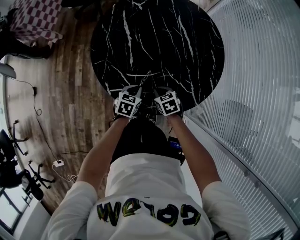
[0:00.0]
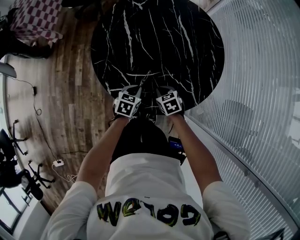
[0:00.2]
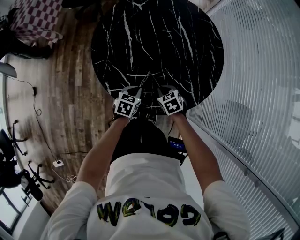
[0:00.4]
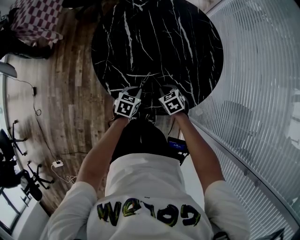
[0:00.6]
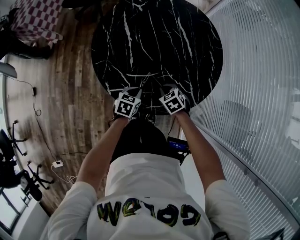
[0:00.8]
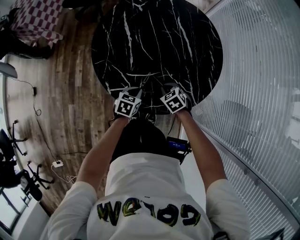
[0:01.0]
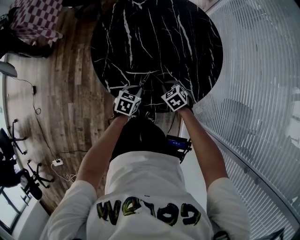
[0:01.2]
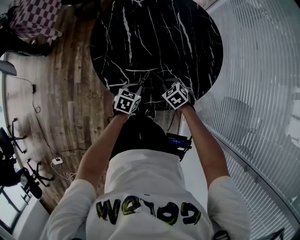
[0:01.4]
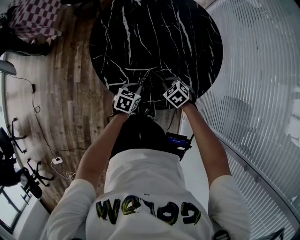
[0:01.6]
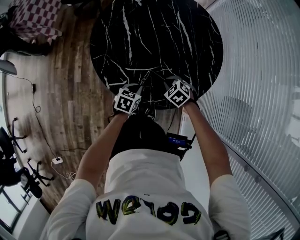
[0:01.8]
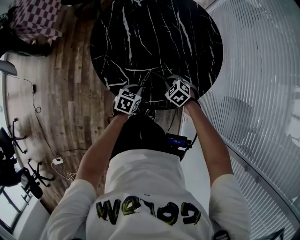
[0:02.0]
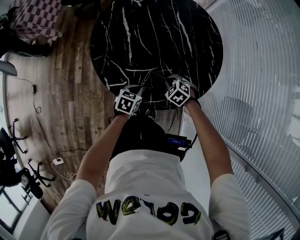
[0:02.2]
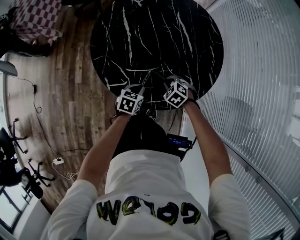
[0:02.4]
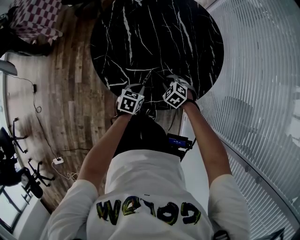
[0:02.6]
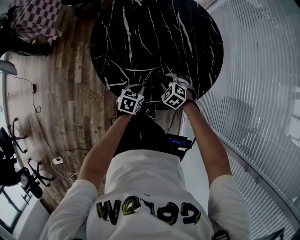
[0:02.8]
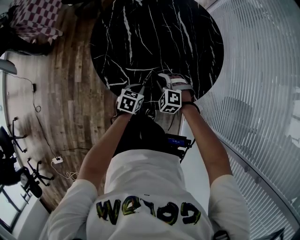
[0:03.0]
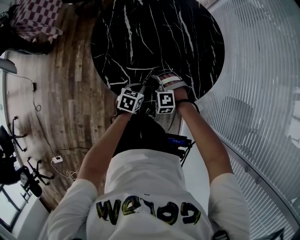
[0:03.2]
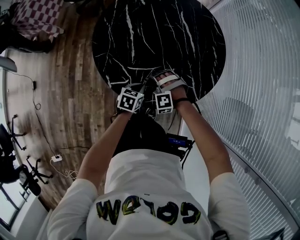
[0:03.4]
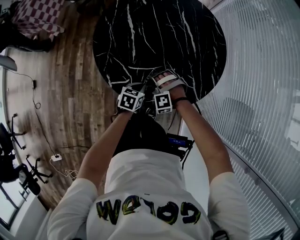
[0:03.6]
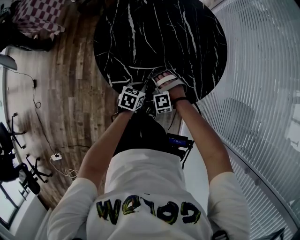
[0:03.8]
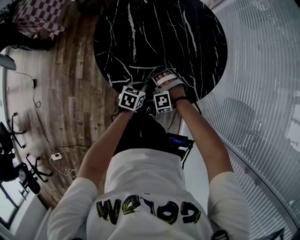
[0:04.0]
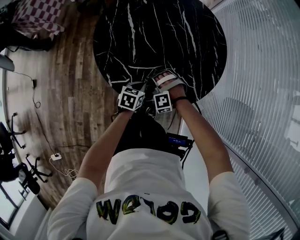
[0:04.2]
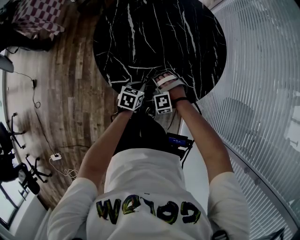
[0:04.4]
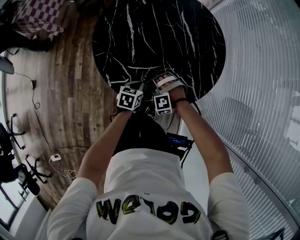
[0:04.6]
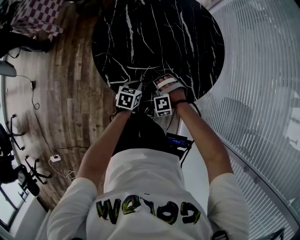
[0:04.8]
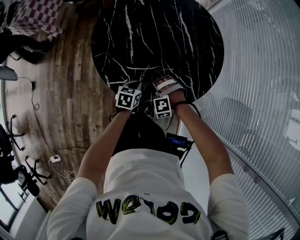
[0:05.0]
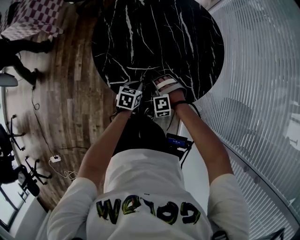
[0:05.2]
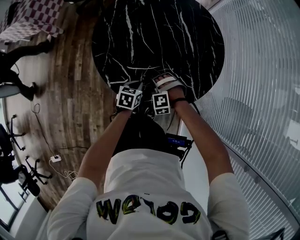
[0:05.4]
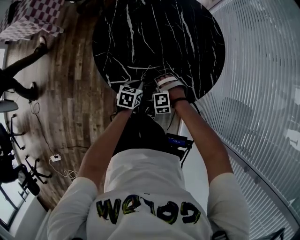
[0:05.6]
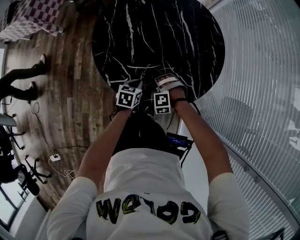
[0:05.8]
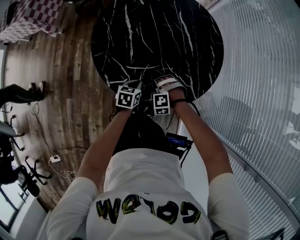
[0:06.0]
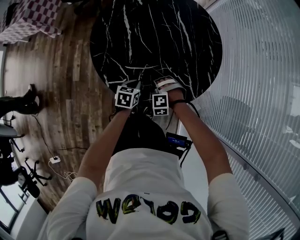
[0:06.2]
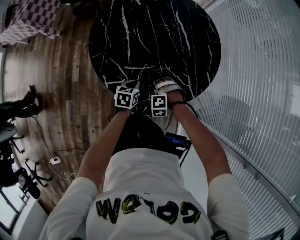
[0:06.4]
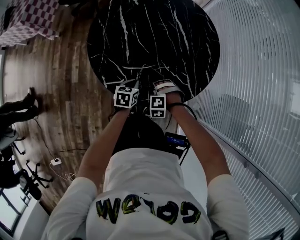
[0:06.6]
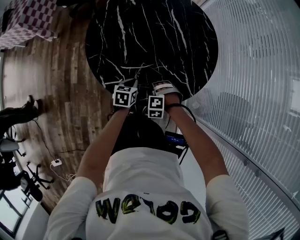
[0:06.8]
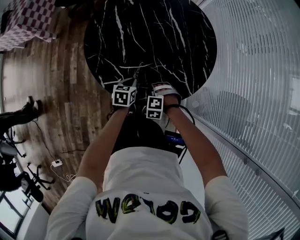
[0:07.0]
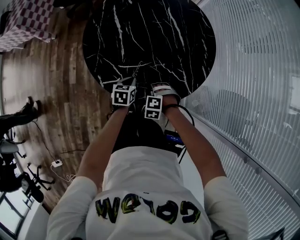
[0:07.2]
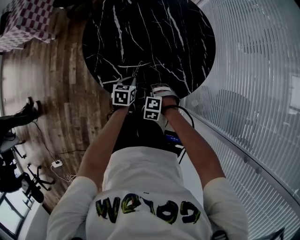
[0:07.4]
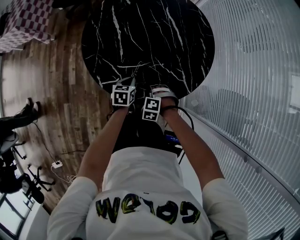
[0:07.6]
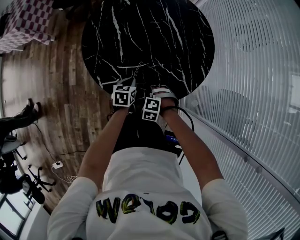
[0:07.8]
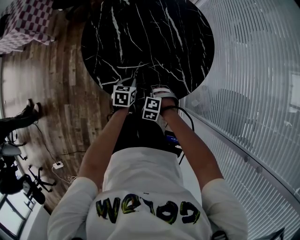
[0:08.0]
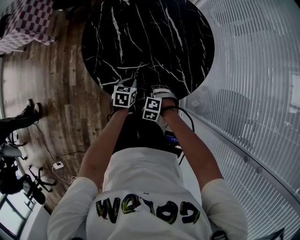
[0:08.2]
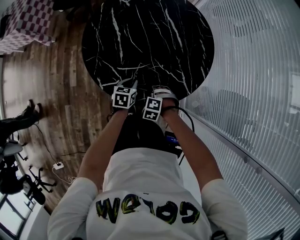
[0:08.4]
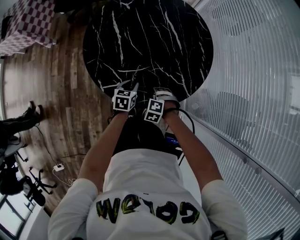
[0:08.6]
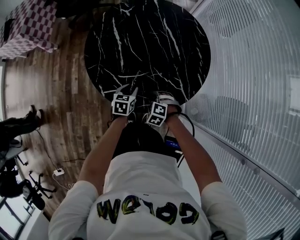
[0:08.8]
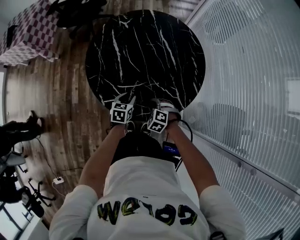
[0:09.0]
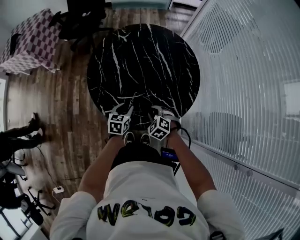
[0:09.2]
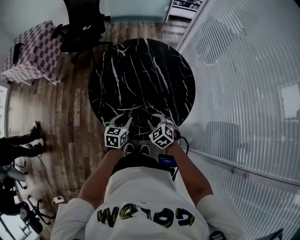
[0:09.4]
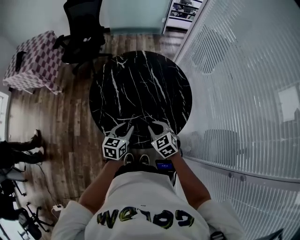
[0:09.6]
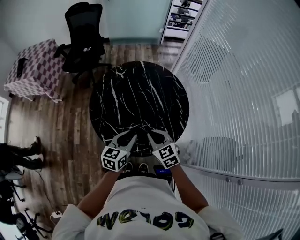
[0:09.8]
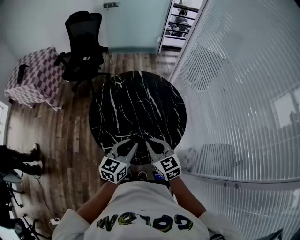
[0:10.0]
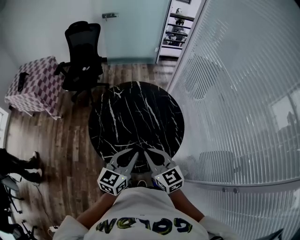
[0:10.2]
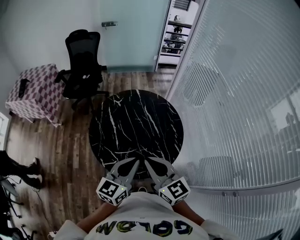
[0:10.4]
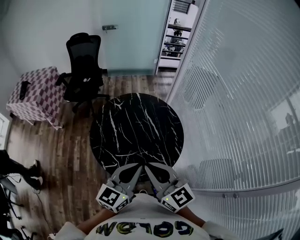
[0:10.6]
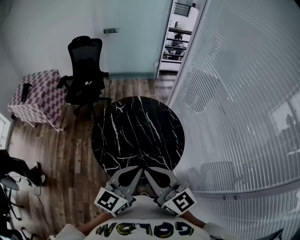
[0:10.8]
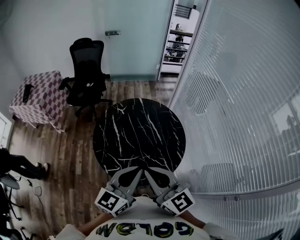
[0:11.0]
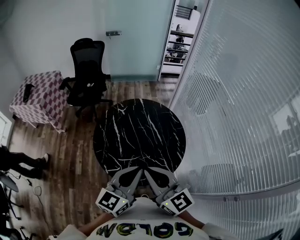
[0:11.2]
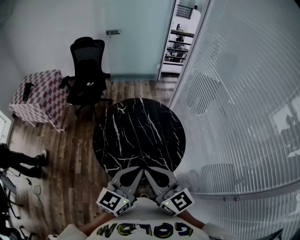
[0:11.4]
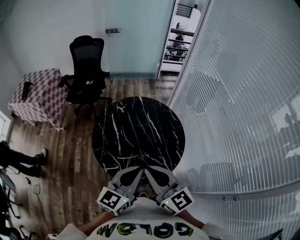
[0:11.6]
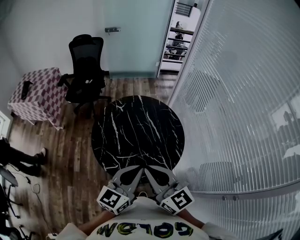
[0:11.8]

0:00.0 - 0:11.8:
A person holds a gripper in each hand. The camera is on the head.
0:00.0 - 0:01.4: The right gripper changes its angle by roughly 20 degrees.
0:01.4 - 0:03.0: The right gripper rotates about 40 degrees.
0:03.0 - 0:04.4: The right gripper shifts by approximately 5 cm, and swivels some 30 degrees.
0:04.4 - 0:06.0: The right gripper opens, then closes again.
0:06.0 - 0:07.4: The right gripper shifts by about 5 cm, and swivels roughly 20 degrees.
0:07.4 - 0:08.8: The left gripper opens its fingers; the right gripper opens its fingers.
0:08.8 - 0:10.4: Both grippers move upward, roughly 40 cm. The right gripper angles its fingers upward, by some 60 degrees, and closes; the left gripper tips its fingers upward by approximately 40 degrees, and closes its fingers.
0:10.4 - 0:11.8: The right gripper ends up some 5 cm from where it was.

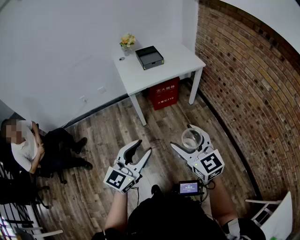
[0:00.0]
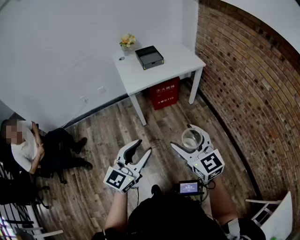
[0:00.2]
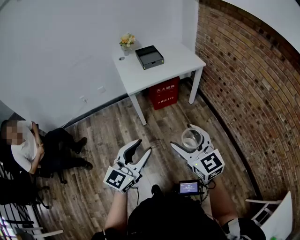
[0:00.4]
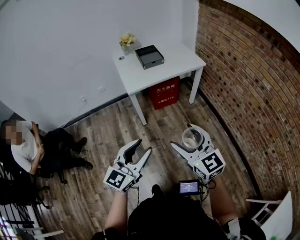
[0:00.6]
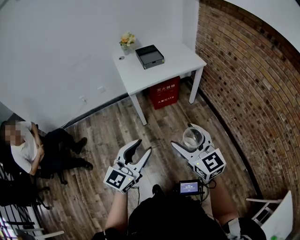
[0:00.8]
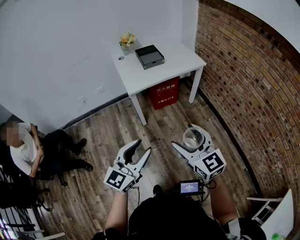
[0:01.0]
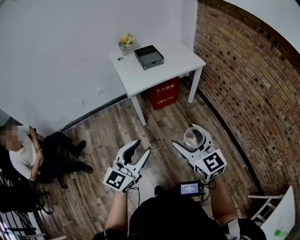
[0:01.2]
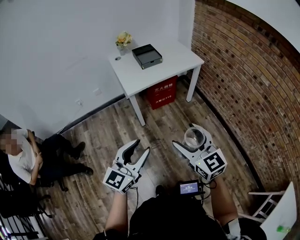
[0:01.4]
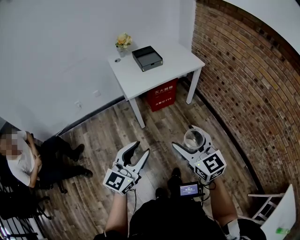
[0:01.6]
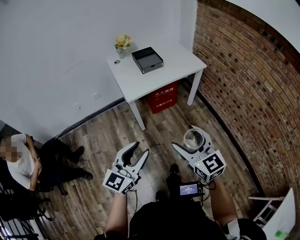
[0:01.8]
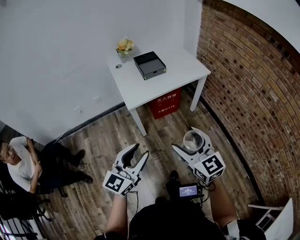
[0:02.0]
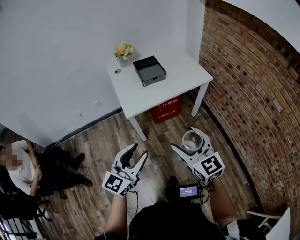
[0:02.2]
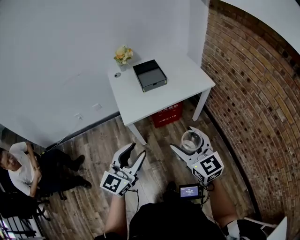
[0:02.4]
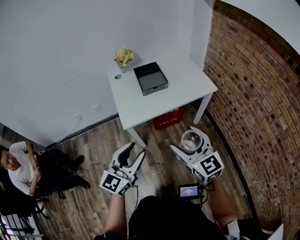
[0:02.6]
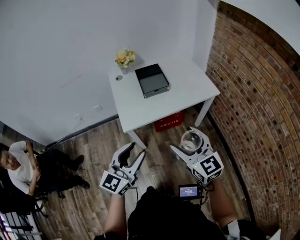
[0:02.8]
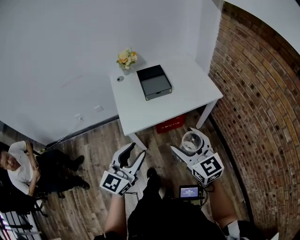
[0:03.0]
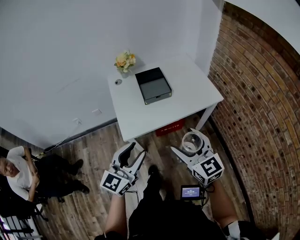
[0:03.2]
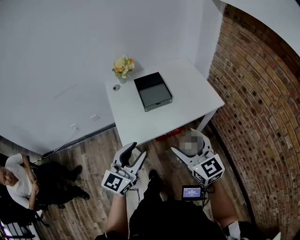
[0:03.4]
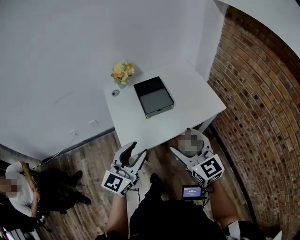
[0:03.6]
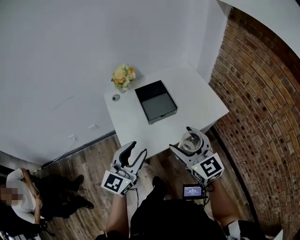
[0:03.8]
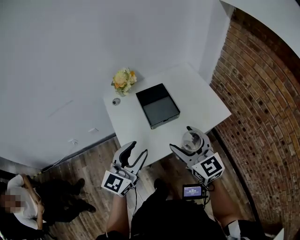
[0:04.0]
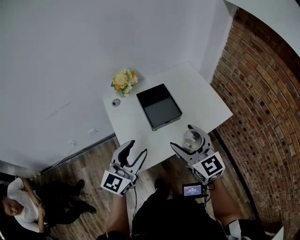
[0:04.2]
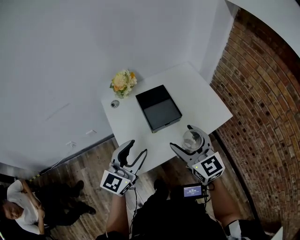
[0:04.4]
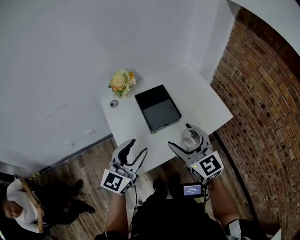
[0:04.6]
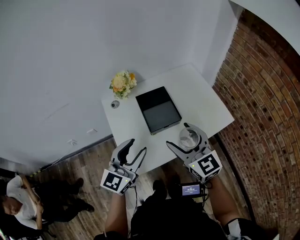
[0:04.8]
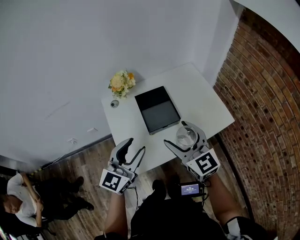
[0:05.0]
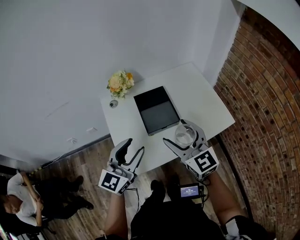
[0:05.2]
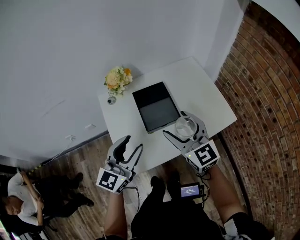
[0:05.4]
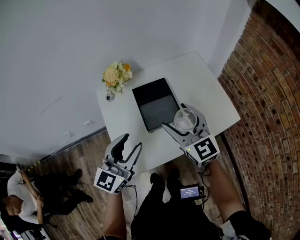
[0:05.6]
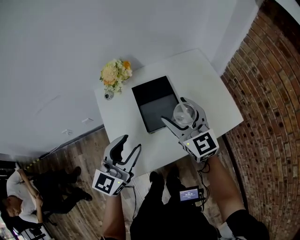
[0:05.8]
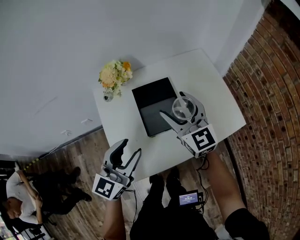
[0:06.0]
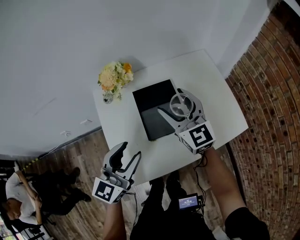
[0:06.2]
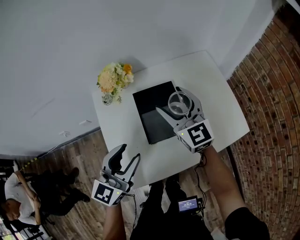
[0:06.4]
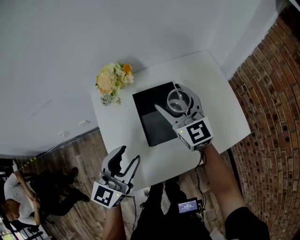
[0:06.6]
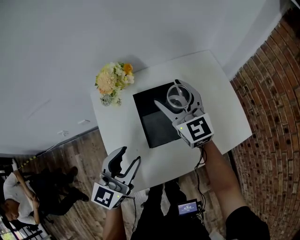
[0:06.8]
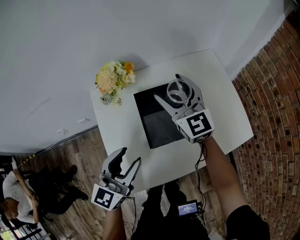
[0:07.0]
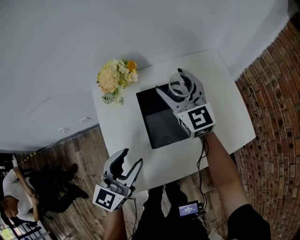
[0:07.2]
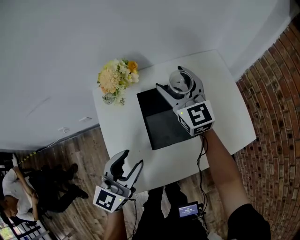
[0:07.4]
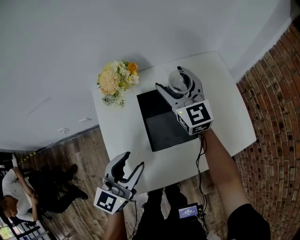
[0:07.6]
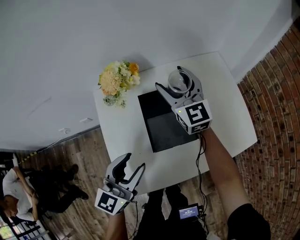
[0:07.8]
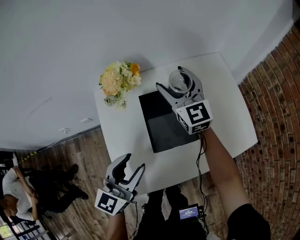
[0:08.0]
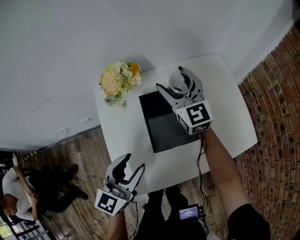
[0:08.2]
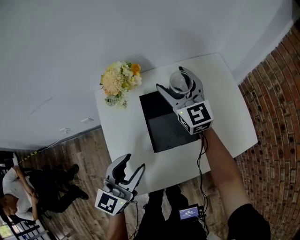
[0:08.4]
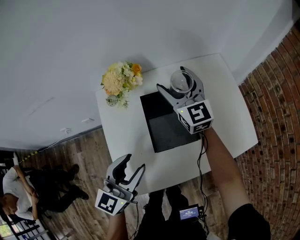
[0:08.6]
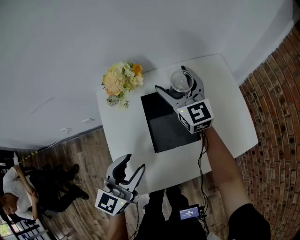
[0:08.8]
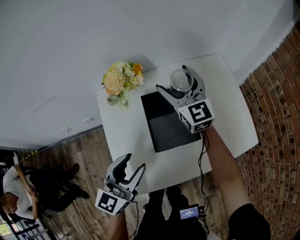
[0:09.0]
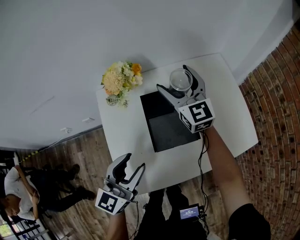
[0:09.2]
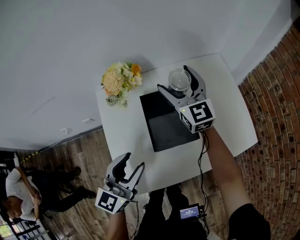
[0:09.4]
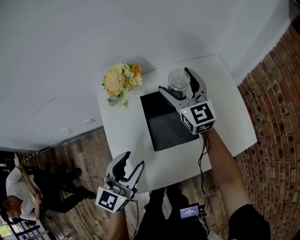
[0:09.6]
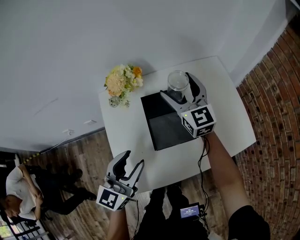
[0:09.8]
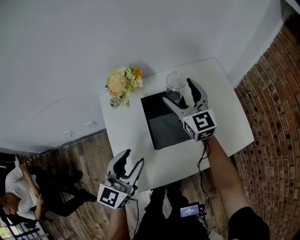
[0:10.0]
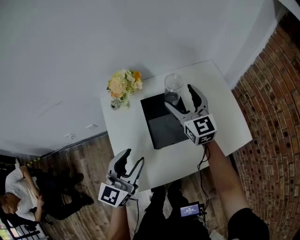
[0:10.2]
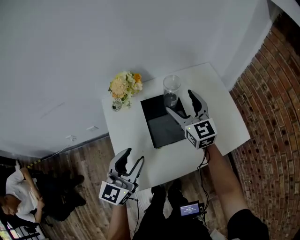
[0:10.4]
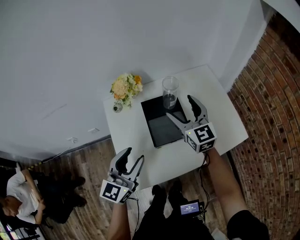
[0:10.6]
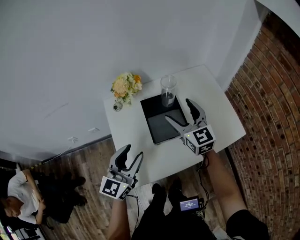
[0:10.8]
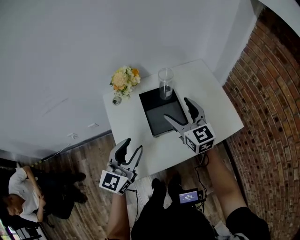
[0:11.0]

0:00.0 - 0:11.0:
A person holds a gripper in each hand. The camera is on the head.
0:00.0 - 0:01.6: The left gripper heads to the left and forward, covering about 10 cm; the right gripper heads to the left, covering approximately 5 cm.
0:01.6 - 0:03.2: Both grippers travel together forward, roughly 35 cm.
0:03.2 - 0:04.8: The two grippers go approximately 25 cm forward.
0:04.8 - 0:06.2: The left gripper heads forward and downward, covering about 10 cm. Meanwhile the right gripper is displaced forward by about 20 cm.
0:06.2 - 0:07.8: The right gripper shifts roughly 15 cm forward.
0:07.8 - 0:09.4: Neither gripper changes place.
0:09.4 - 0:11.0: The left gripper is displaced backward by some 5 cm; the right gripper shifts approximately 20 cm backward.

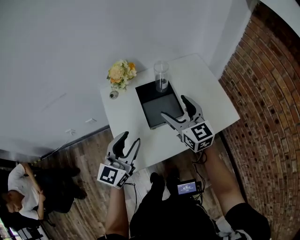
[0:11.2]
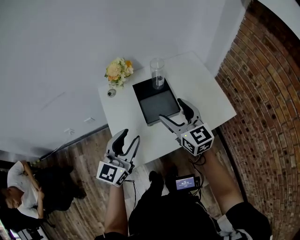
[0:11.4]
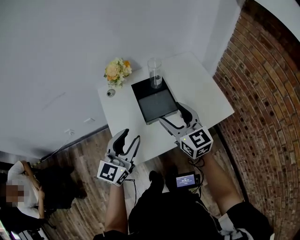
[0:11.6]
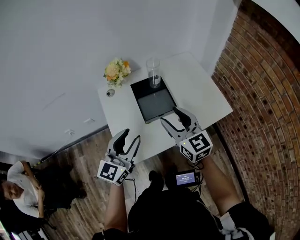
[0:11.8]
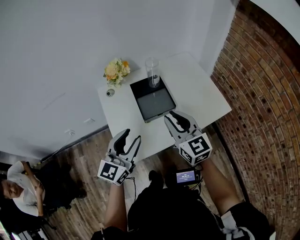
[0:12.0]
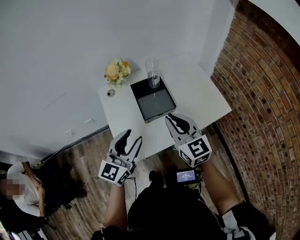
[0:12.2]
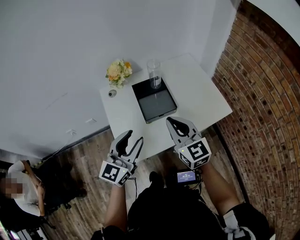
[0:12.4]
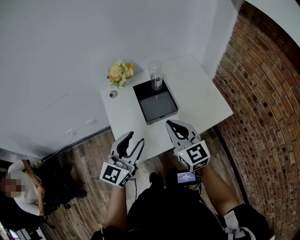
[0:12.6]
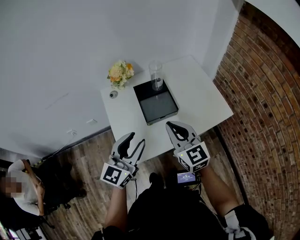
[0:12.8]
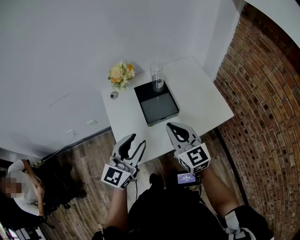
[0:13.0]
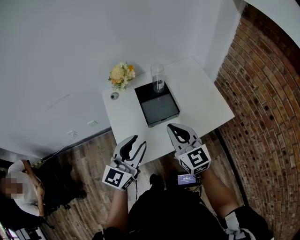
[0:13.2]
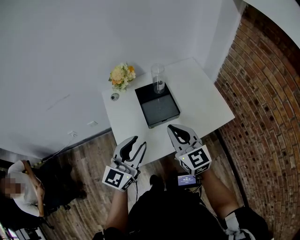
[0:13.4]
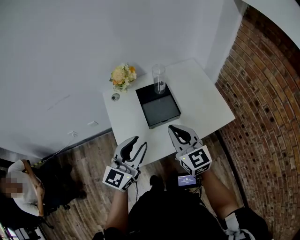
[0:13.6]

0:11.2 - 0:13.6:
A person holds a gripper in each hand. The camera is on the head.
0:11.2 - 0:12.4: The right gripper is displaced backward by about 10 cm, and closes up. The left gripper shifts about 5 cm backward.
0:12.4 - 0:13.6: Both grippers stay put.
